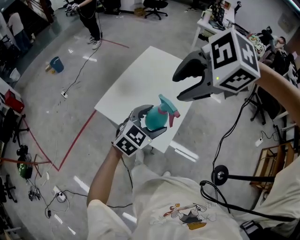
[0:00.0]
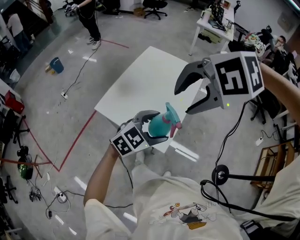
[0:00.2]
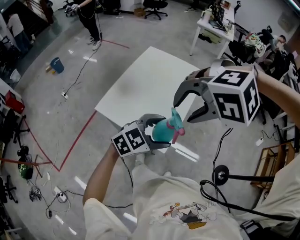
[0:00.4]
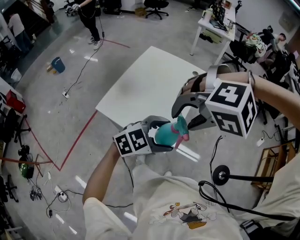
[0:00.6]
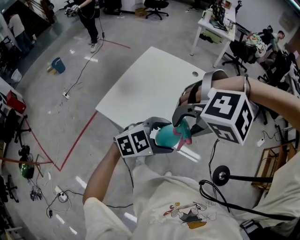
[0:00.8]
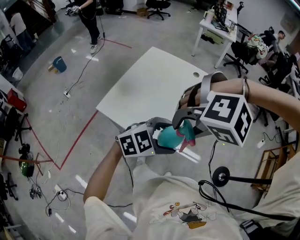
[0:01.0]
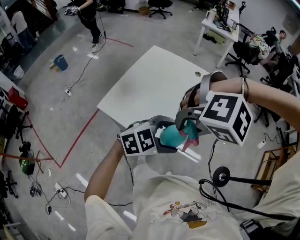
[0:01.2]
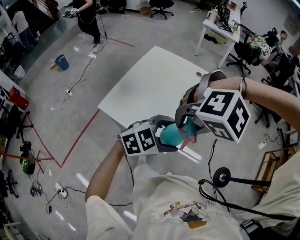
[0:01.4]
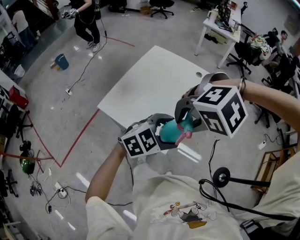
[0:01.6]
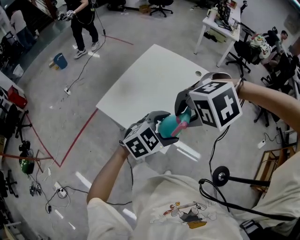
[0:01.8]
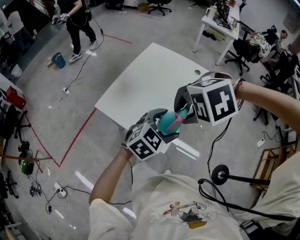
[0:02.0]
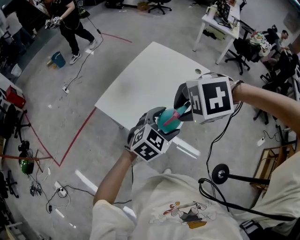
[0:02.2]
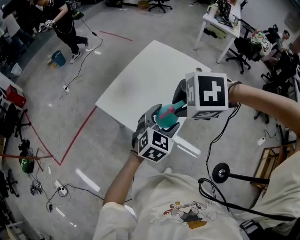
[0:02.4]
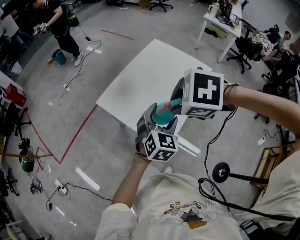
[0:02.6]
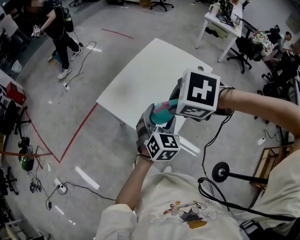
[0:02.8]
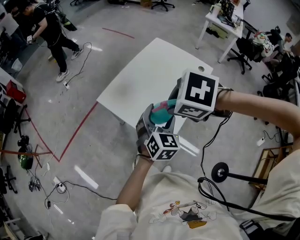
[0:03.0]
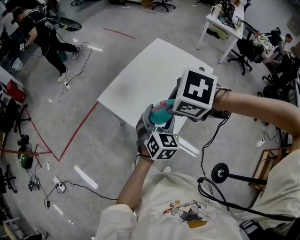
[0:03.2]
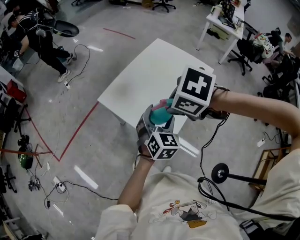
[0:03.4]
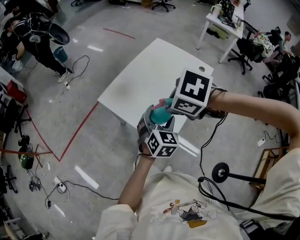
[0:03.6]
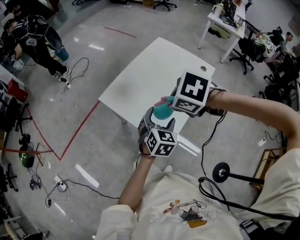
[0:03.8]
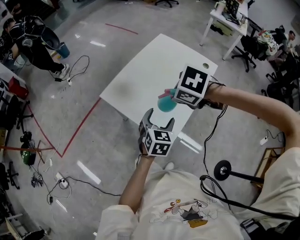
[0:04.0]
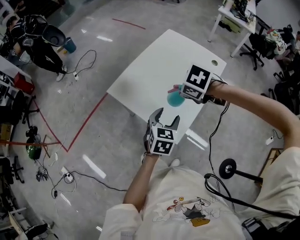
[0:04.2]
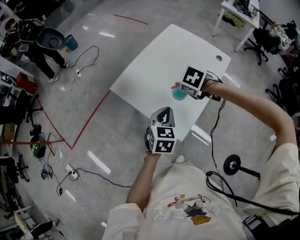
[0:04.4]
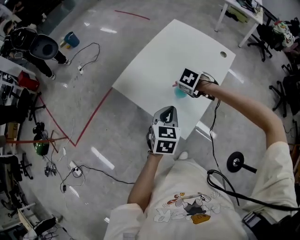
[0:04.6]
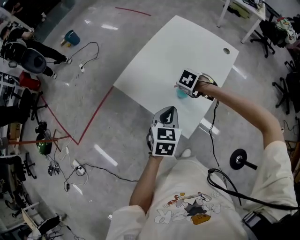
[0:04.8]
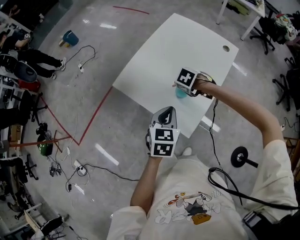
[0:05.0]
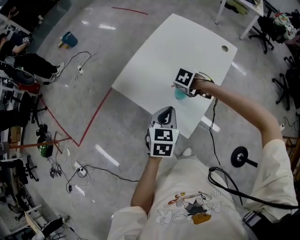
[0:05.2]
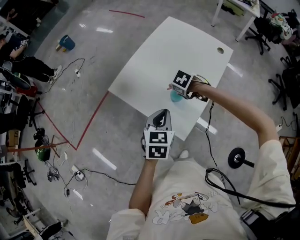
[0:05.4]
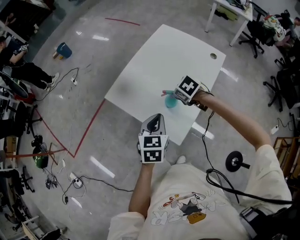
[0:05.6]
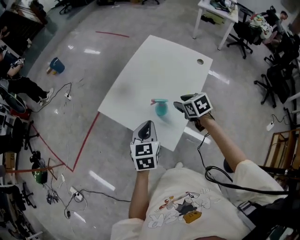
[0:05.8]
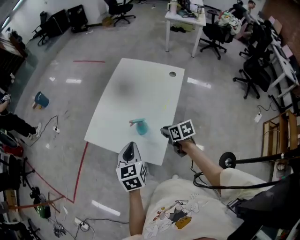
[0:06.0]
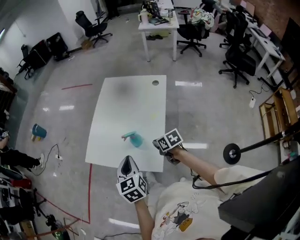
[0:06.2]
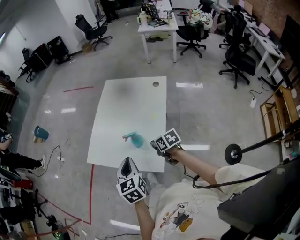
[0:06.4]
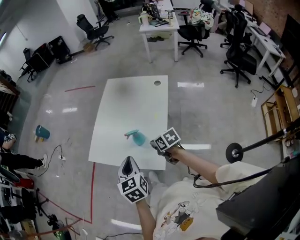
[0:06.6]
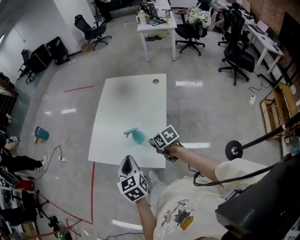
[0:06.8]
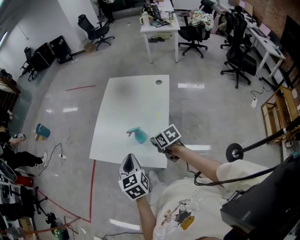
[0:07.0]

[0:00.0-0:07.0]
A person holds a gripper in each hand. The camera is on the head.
0:00.0 to 0:01.4: The right gripper shifts by some 15 cm, and rolls counterclockwise, seen from behind, by roughly 50 degrees. The left gripper ends up approximately 10 cm from where it was, and changes its angle by about 30 degrees.
0:01.4 to 0:02.8: The right gripper shifts by roughly 10 cm, and rotates around the line of its fingers by roughly 60 degrees, clockwise from behind, while the left gripper moves roughly 15 cm, and rotates about 70 degrees.
0:02.8 to 0:04.2: The right gripper travels downward by approximately 10 cm. Meanwhile the left gripper goes roughly 5 cm downward, and changes its angle by roughly 20 degrees.
0:04.2 to 0:05.6: The right gripper shifts approximately 15 cm downward. Meanwhile the left gripper closes its fingers.
0:05.6 to 0:07.0: The right gripper goes about 15 cm backward, rotates around the line of its fingers by roughly 50 degrees, clockwise from behind, and closes its fingers; the left gripper travels backward and upward by about 10 cm.

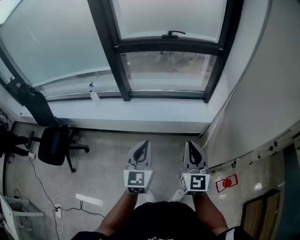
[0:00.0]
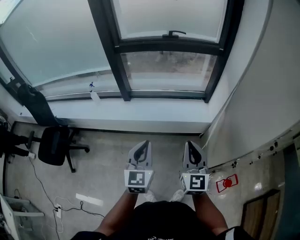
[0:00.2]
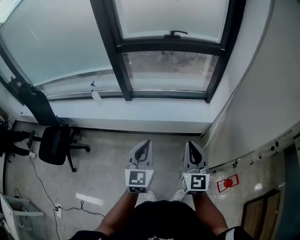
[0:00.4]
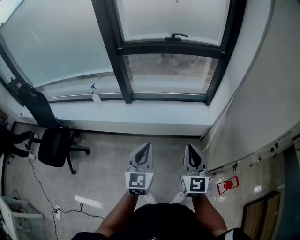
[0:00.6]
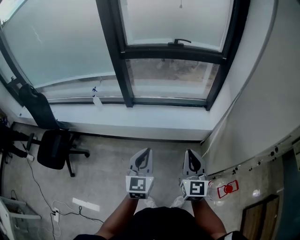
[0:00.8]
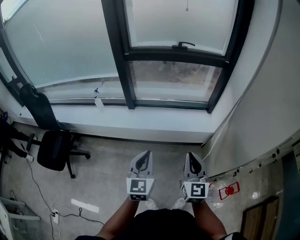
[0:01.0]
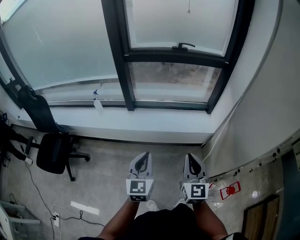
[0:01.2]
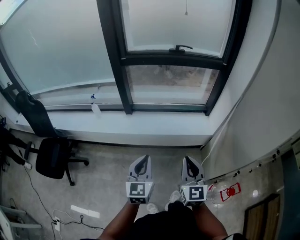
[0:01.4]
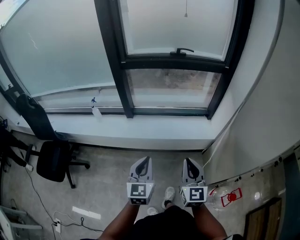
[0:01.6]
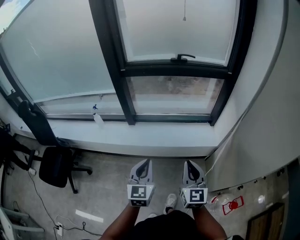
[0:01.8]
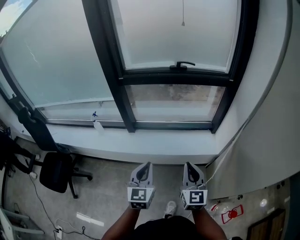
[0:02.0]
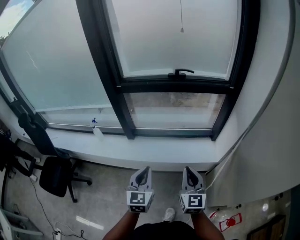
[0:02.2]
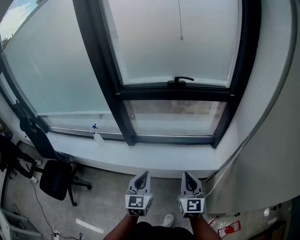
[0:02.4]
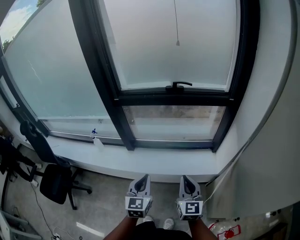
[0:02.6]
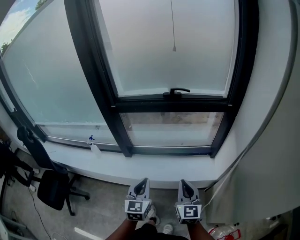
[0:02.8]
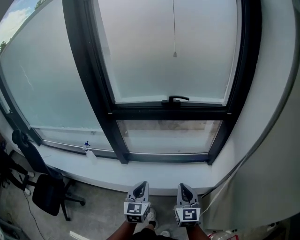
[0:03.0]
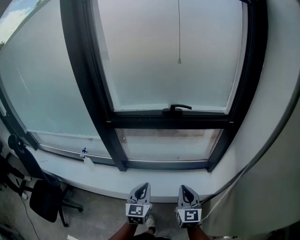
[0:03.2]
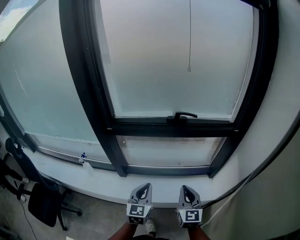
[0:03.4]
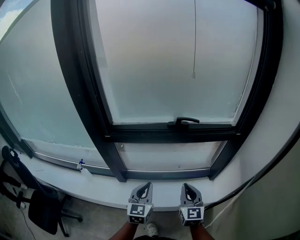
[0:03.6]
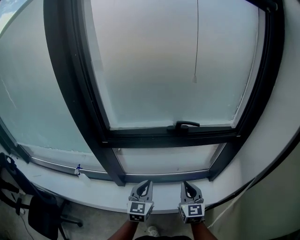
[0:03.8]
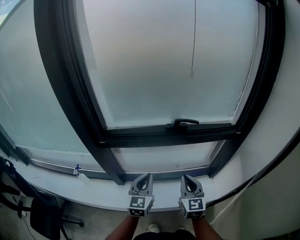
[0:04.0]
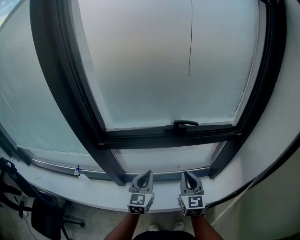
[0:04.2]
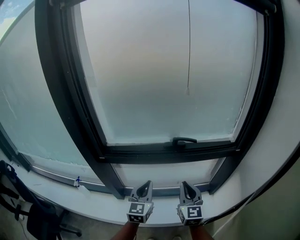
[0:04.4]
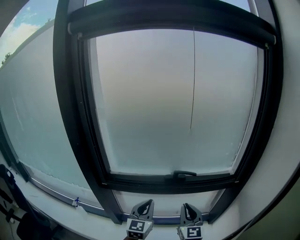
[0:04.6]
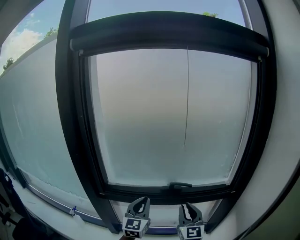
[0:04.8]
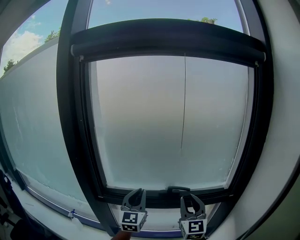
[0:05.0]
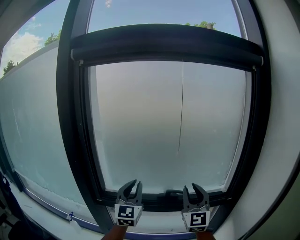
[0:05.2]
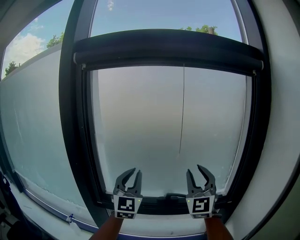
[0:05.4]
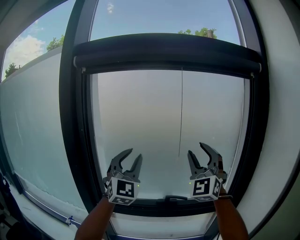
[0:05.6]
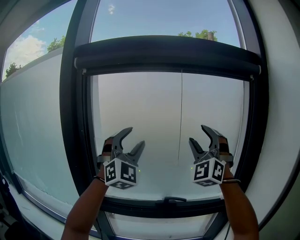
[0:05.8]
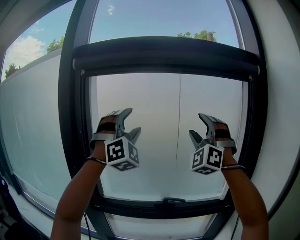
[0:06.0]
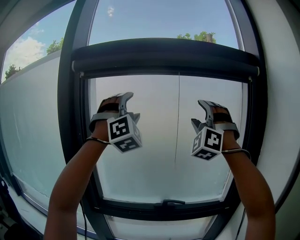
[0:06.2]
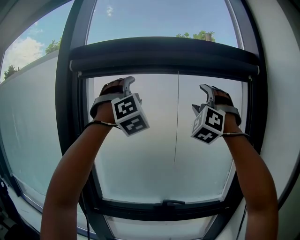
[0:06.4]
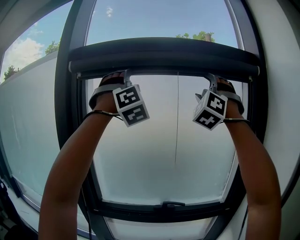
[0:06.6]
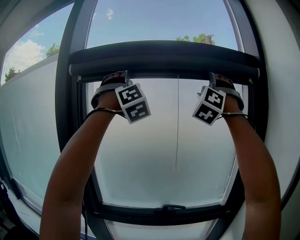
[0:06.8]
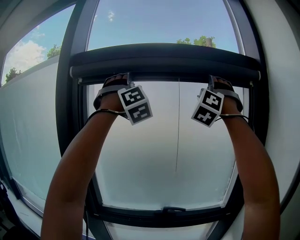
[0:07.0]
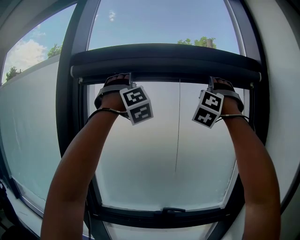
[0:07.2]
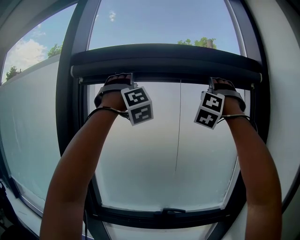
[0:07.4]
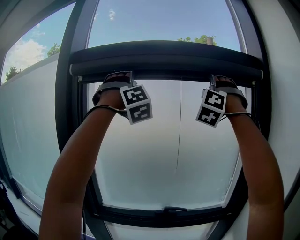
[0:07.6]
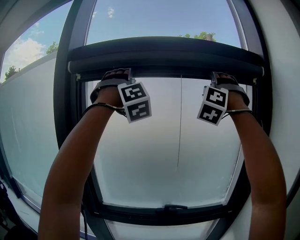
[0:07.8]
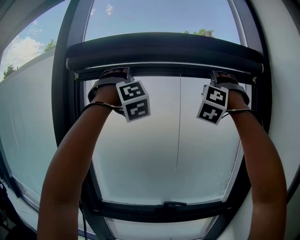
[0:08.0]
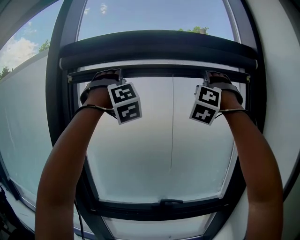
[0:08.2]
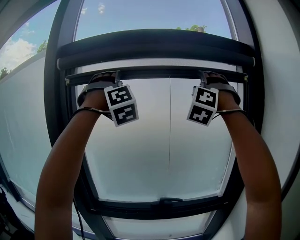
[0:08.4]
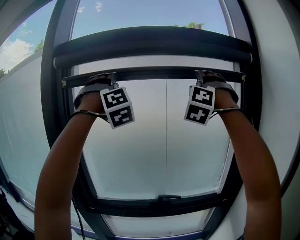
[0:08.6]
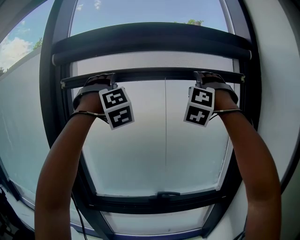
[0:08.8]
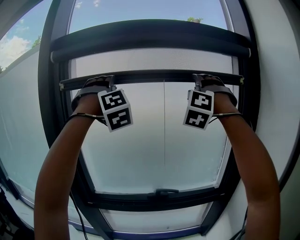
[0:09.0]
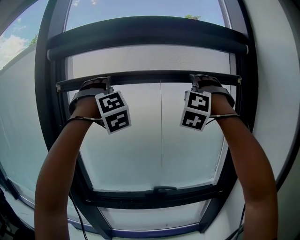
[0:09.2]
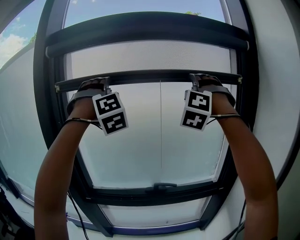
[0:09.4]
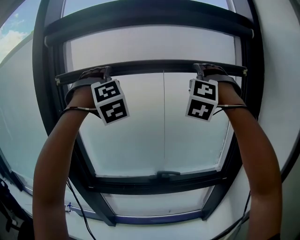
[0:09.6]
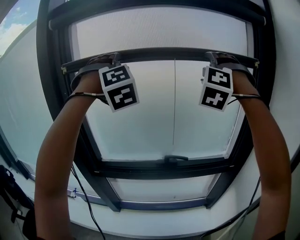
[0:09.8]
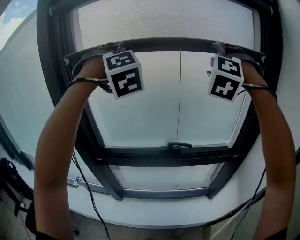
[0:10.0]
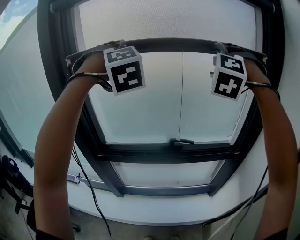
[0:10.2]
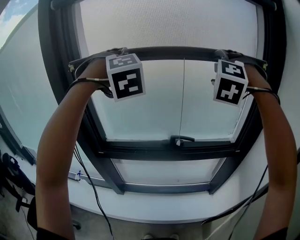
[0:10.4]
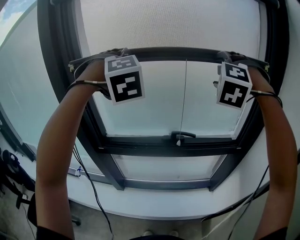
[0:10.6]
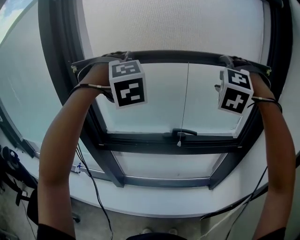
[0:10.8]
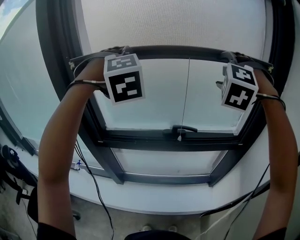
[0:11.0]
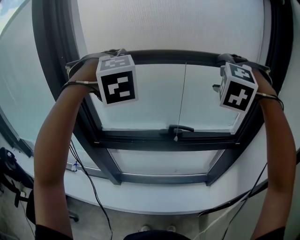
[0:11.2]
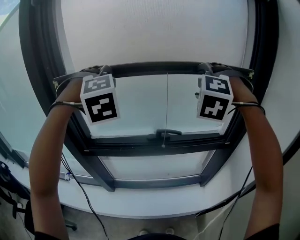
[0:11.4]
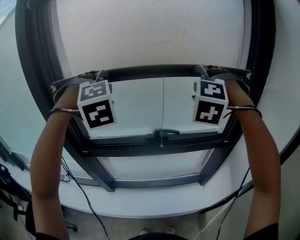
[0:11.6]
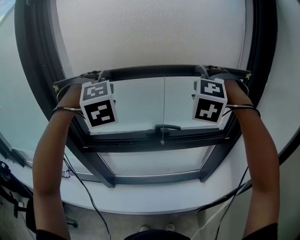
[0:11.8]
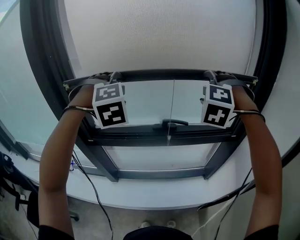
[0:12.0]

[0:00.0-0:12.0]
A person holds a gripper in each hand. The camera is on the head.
0:00.0 to 0:01.6: Both grippers travel together to the left, approximately 5 cm.
0:01.6 to 0:03.0: Both grippers move forward, approximately 25 cm.
0:03.0 to 0:04.4: The grippers both shift forward by approximately 25 cm.
0:04.4 to 0:06.0: The grippers both shift upward by roughly 50 cm. The right gripper rolls counterclockwise, seen from behind, by approximately 80 degrees, and opens its fingers. Meanwhile the left gripper rotates around the line of its fingers by some 80 degrees, clockwise from behind, and opens its fingers.
0:06.0 to 0:07.6: The left gripper goes roughly 15 cm upward and forward, and changes its angle by roughly 20 degrees; the right gripper is displaced upward by approximately 15 cm, and changes its angle by approximately 20 degrees.
0:07.6 to 0:09.0: Both grippers move downward, about 10 cm.
0:09.0 to 0:10.4: Both grippers travel together downward, about 15 cm. The right gripper turns by roughly 20 degrees. Meanwhile the left gripper changes its angle by approximately 30 degrees.
0:10.4 to 0:12.0: Both grippers travel together downward, approximately 15 cm.

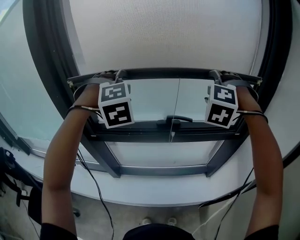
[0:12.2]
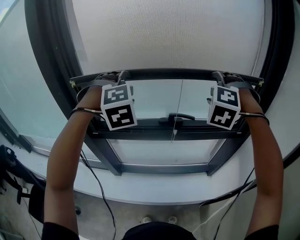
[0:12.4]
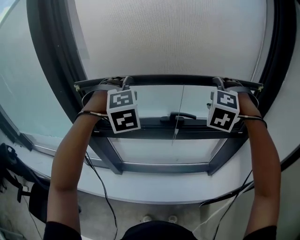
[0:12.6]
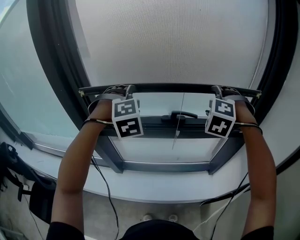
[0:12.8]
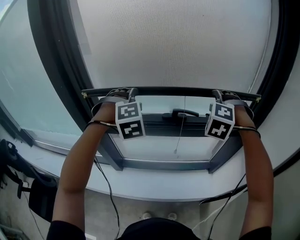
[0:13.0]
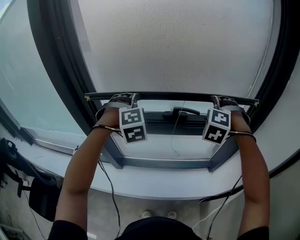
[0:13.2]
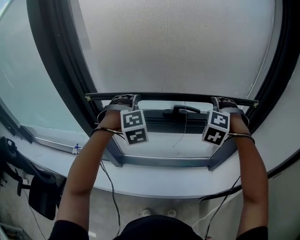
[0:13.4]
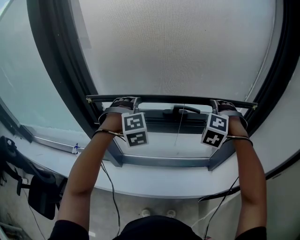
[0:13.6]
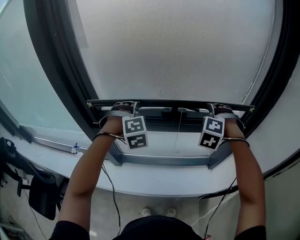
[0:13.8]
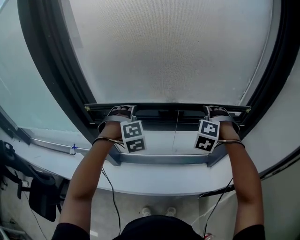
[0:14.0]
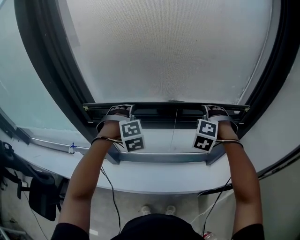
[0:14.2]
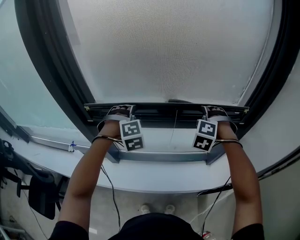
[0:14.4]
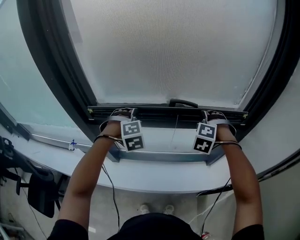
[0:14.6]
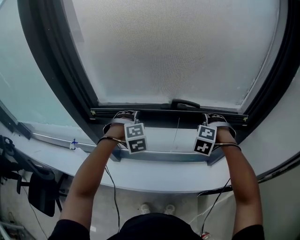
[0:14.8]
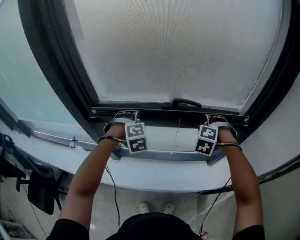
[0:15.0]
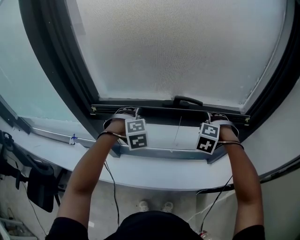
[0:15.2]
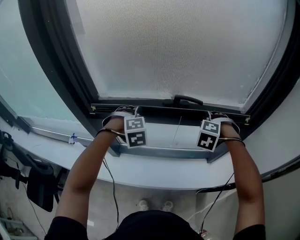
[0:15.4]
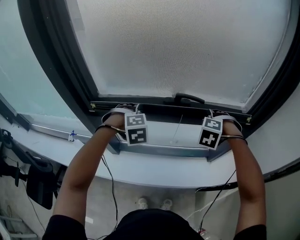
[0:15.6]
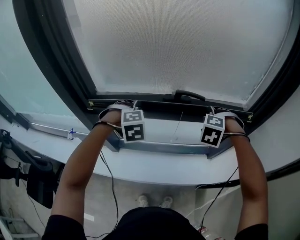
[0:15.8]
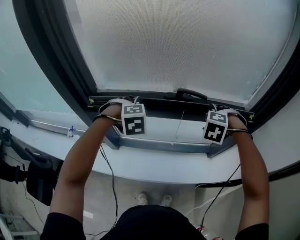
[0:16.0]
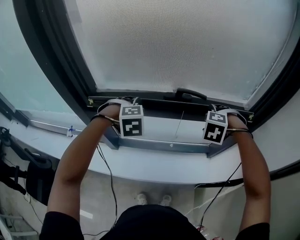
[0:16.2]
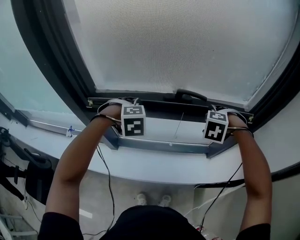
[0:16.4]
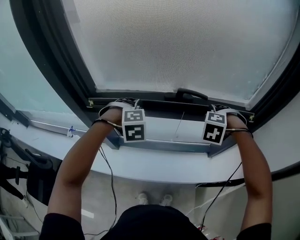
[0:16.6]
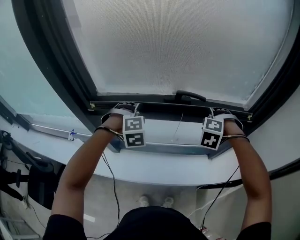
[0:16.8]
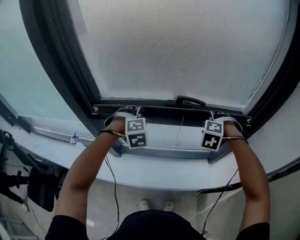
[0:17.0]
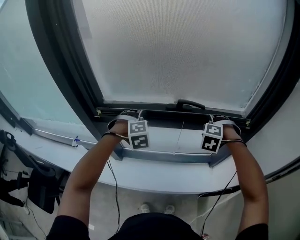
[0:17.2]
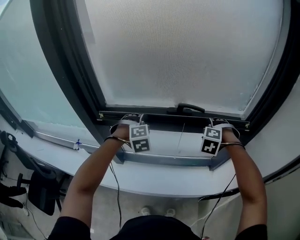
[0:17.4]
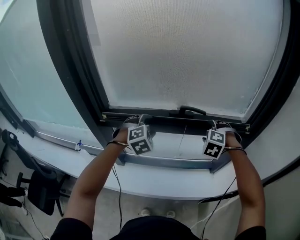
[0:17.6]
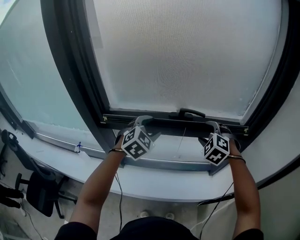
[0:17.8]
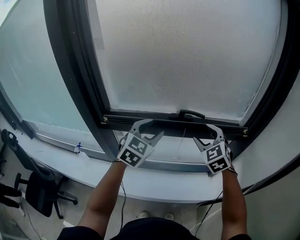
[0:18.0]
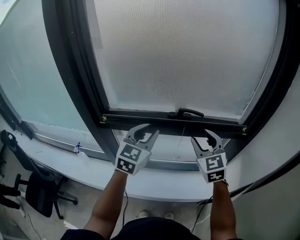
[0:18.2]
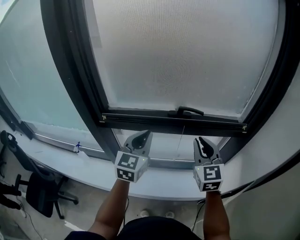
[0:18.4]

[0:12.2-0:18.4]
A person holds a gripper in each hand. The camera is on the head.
0:12.2 to 0:13.8: Both grippers move downward, some 20 cm.
0:13.8 to 0:15.4: Both grippers travel together downward, approximately 10 cm.
0:15.4 to 0:16.8: The grippers make only small movements.
0:16.8 to 0:18.4: Both grippers travel together upward and backward, some 15 cm. The right gripper points its fingers approximately 50 degrees further upward, and closes, while the left gripper tilts its fingers some 50 degrees upward, and closes up.
